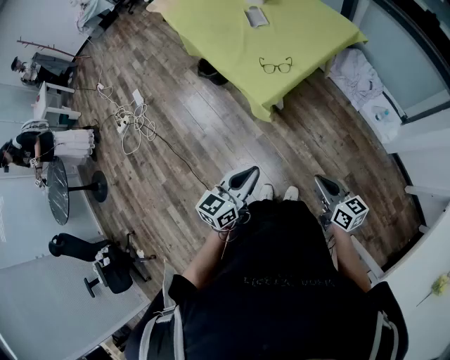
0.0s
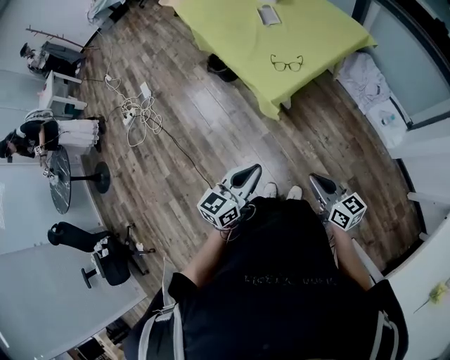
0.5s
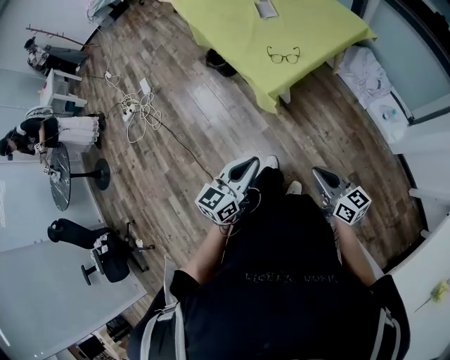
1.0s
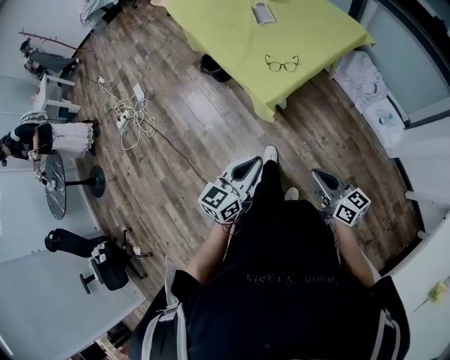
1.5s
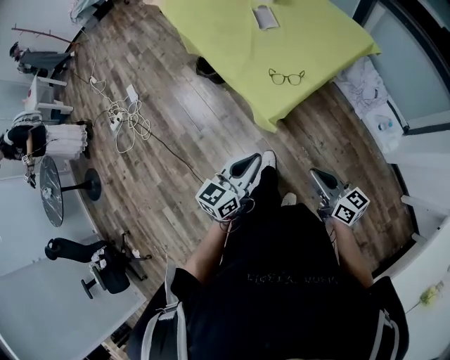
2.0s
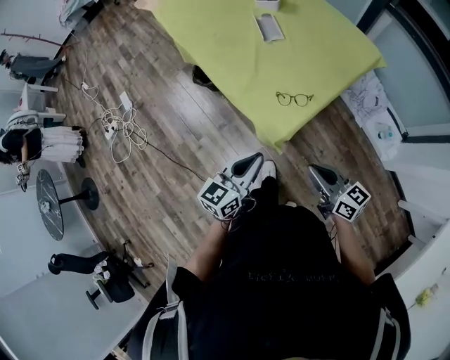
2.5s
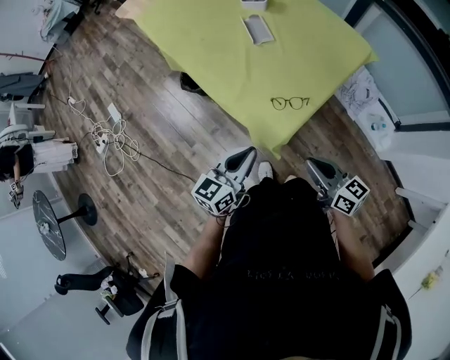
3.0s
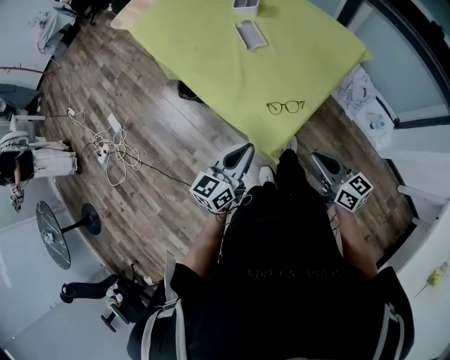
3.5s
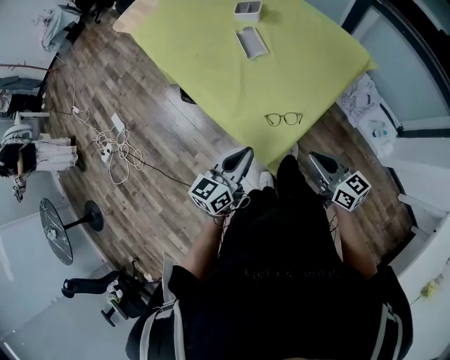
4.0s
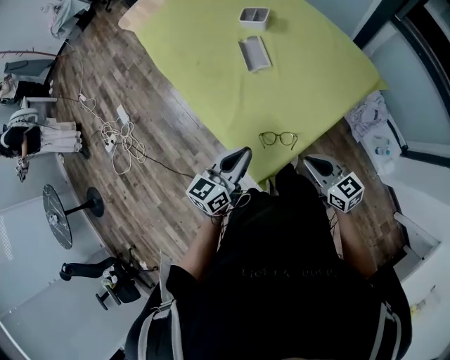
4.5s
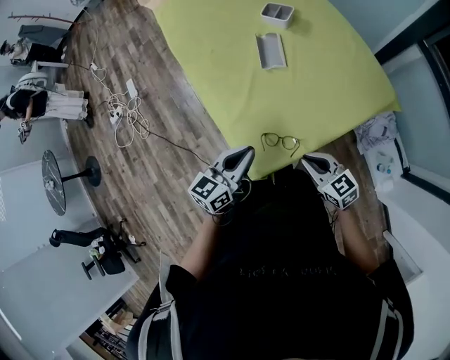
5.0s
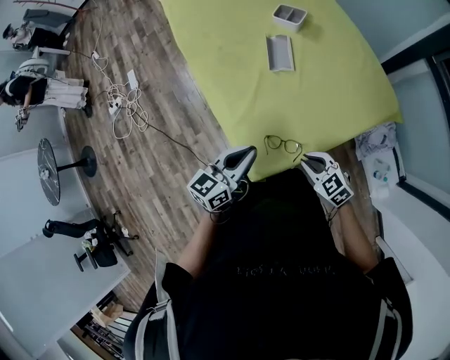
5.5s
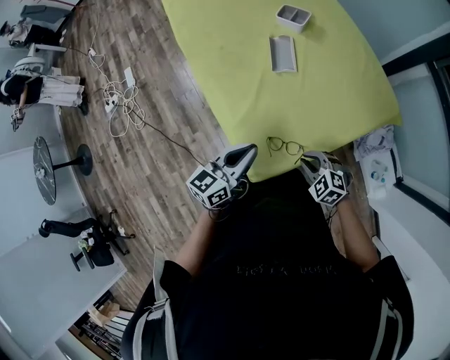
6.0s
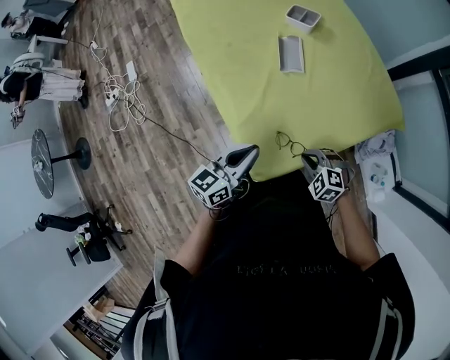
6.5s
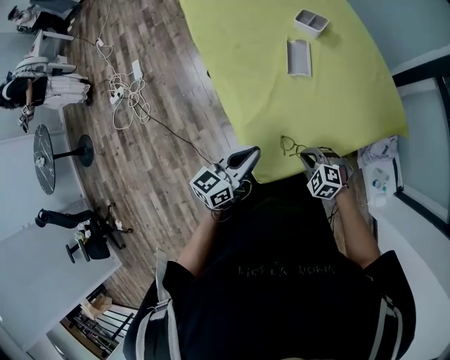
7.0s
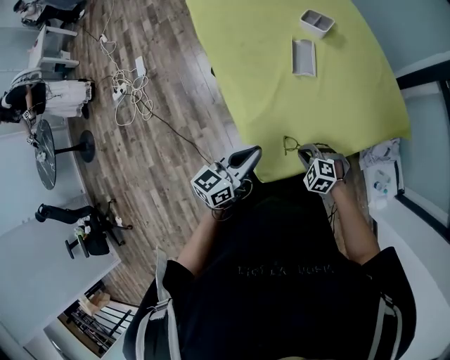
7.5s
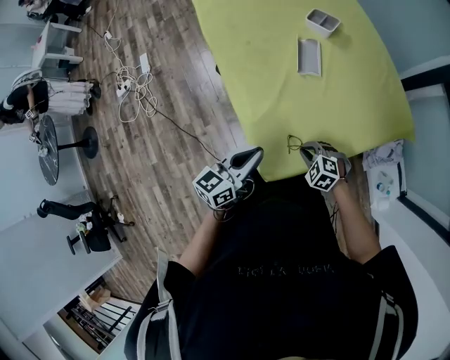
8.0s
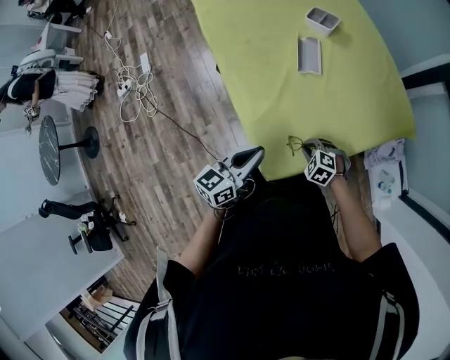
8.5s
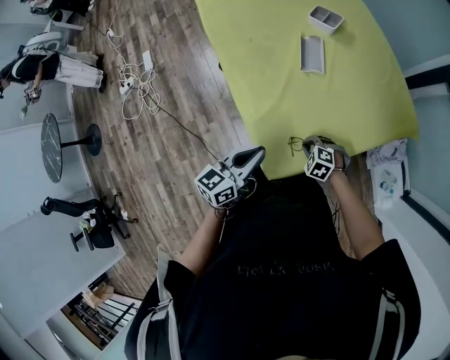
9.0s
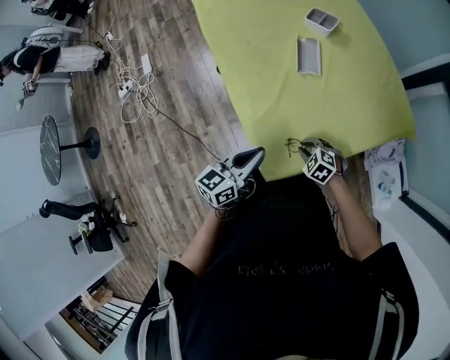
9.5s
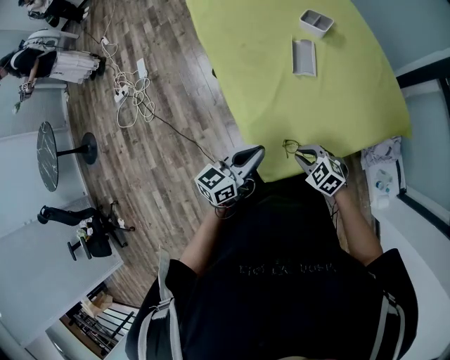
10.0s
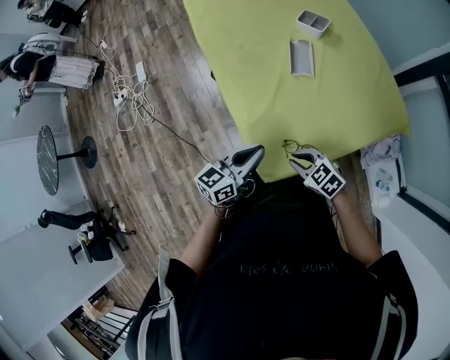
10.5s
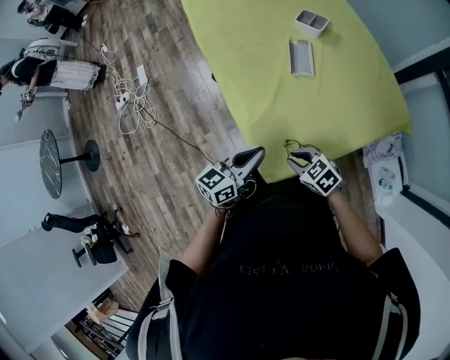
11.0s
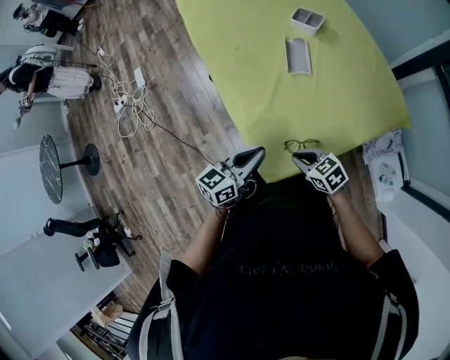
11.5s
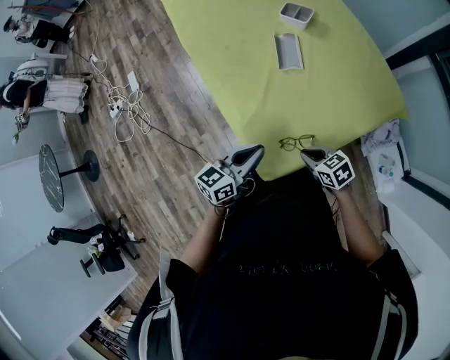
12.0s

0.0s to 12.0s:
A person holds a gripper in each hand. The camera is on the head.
0.0s to 2.0s: The two grippers go roughly 10 cm forward.
2.0s to 4.0s: The grippers both shift forward by about 20 cm.
4.0s to 6.0s: The right gripper heads downward and forward, covering about 15 cm, and angles its fingers downward, by some 40 degrees. The left gripper travels forward by about 10 cm.
6.0s to 8.0s: The grippers both shift to the left by roughly 5 cm.
8.0s to 10.0s: The right gripper goes some 5 cm upward.
10.0s to 12.0s: The right gripper turns by about 40 degrees.

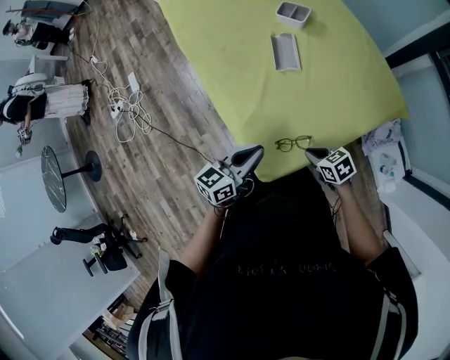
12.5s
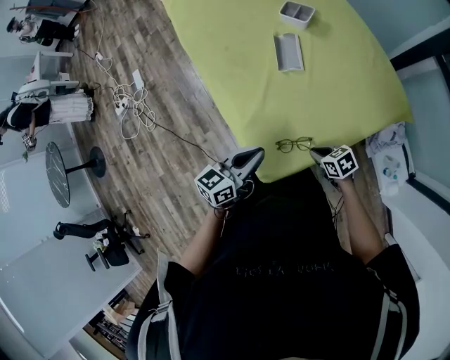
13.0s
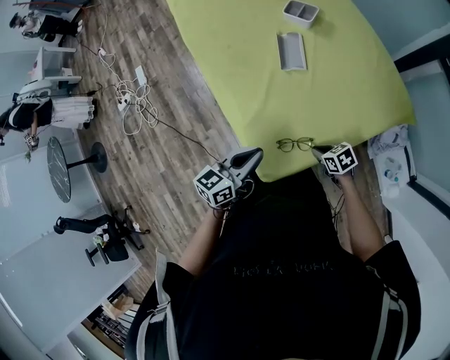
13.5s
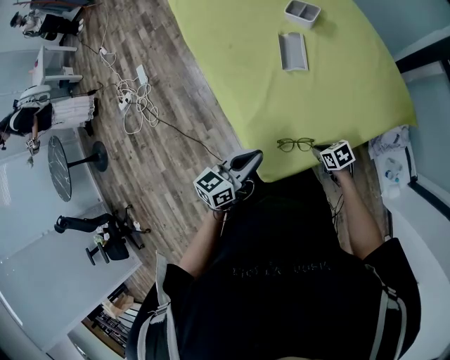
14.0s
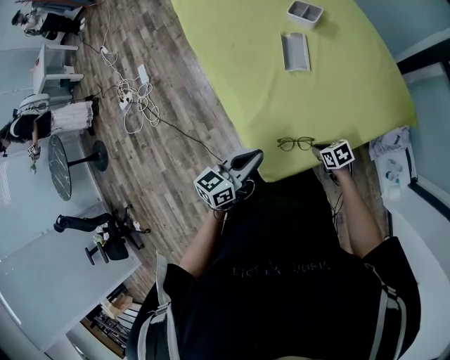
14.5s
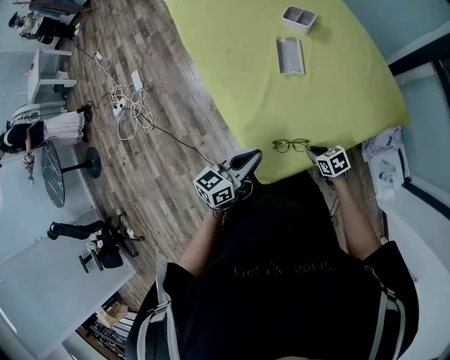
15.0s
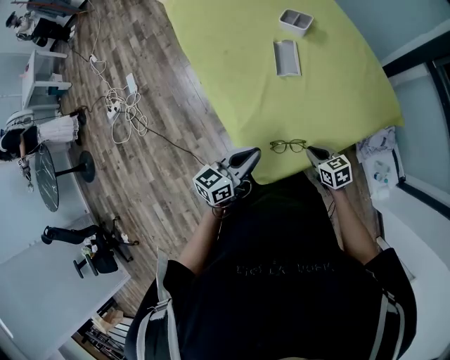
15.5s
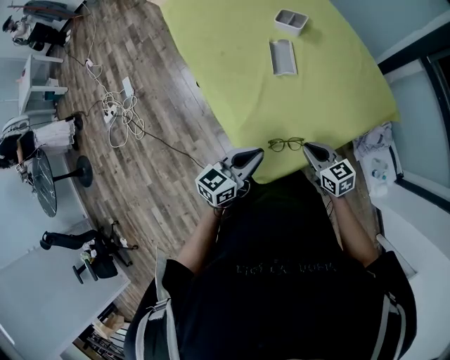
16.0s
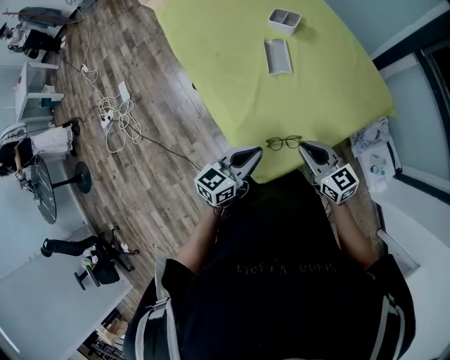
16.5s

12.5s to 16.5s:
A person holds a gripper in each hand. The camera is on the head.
12.5s to 14.5s: The right gripper shifts approximately 10 cm downward.
14.5s to 16.5s: The right gripper heads upward, covering roughly 25 cm, and points its fingers approximately 30 degrees further upward.

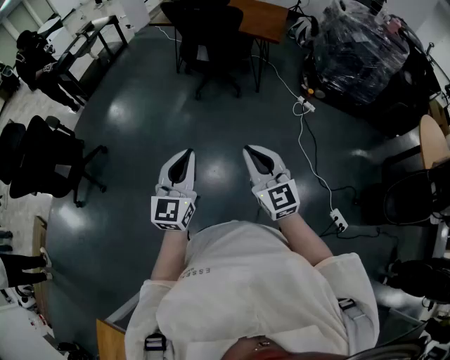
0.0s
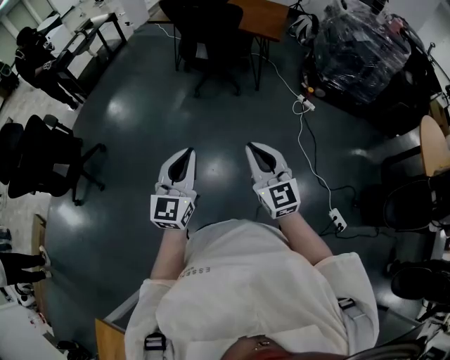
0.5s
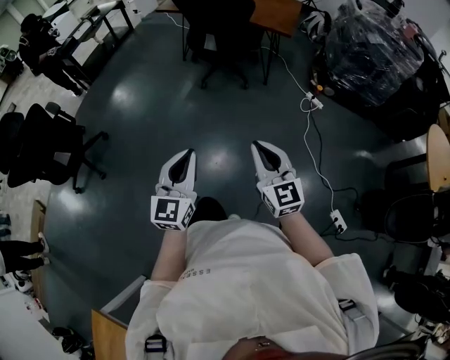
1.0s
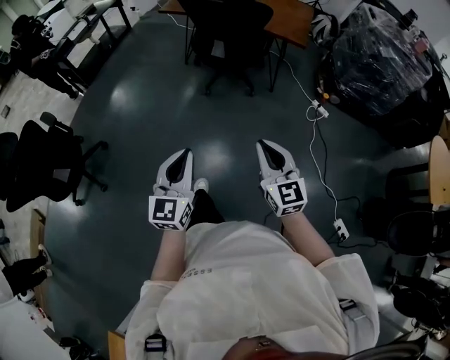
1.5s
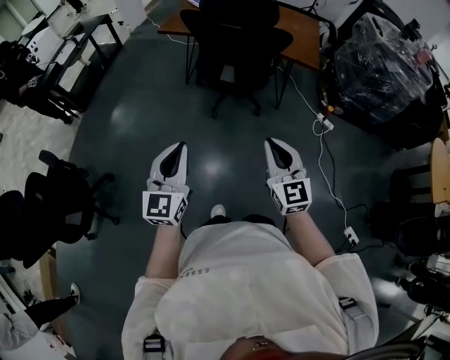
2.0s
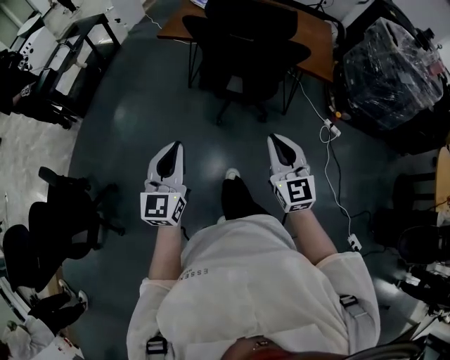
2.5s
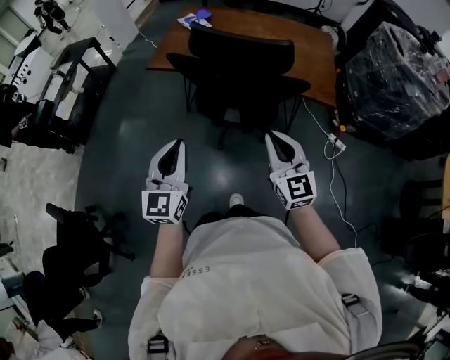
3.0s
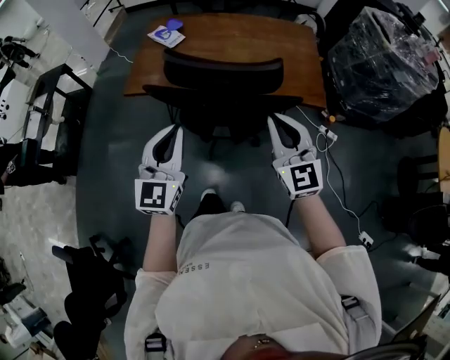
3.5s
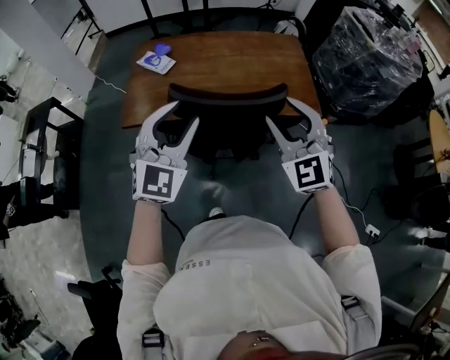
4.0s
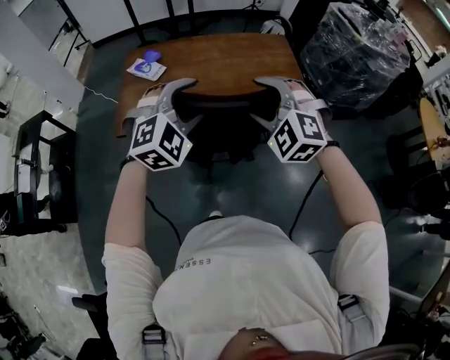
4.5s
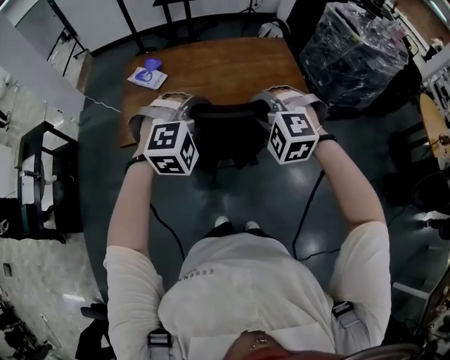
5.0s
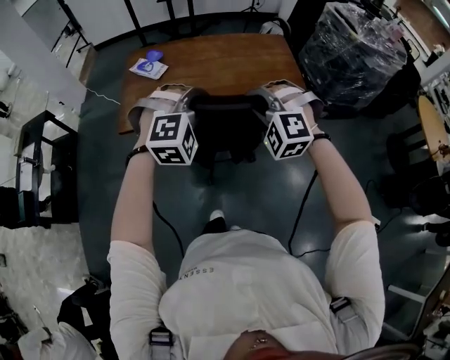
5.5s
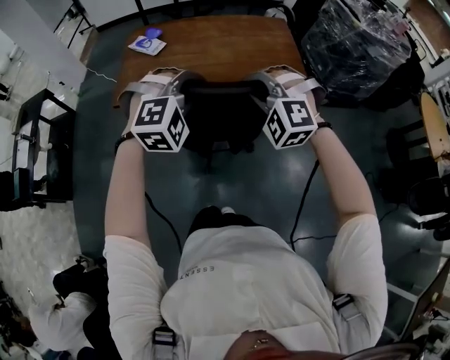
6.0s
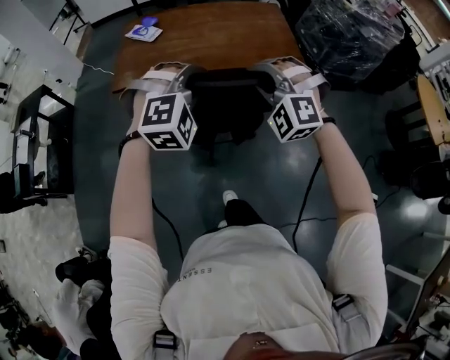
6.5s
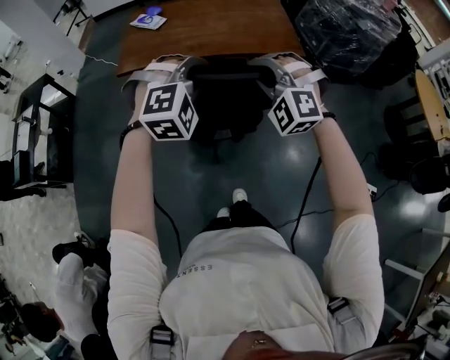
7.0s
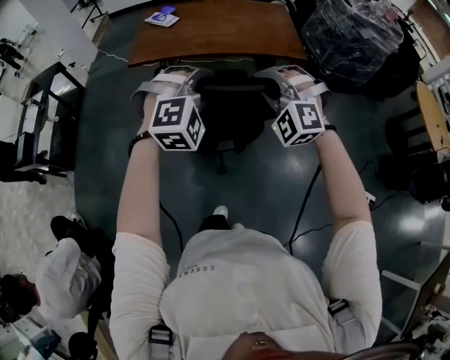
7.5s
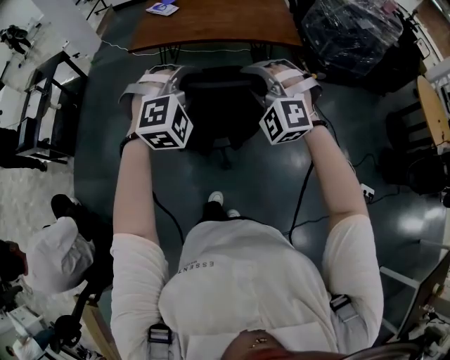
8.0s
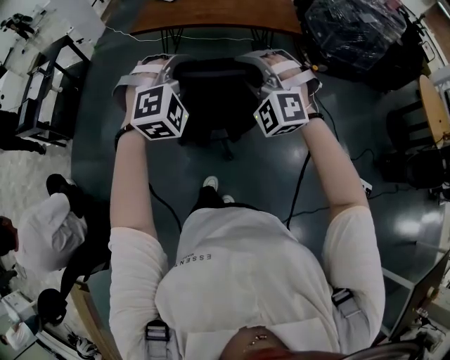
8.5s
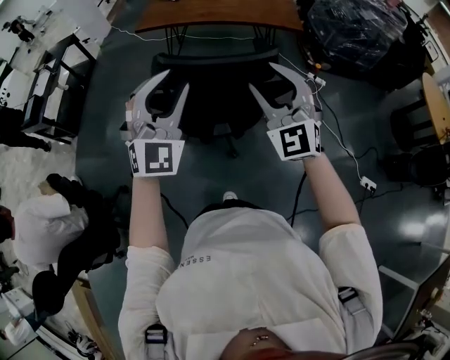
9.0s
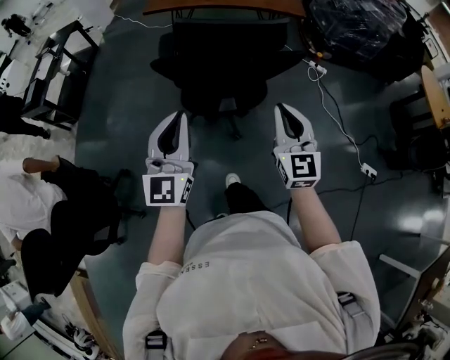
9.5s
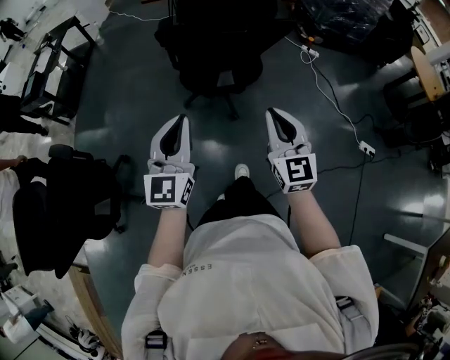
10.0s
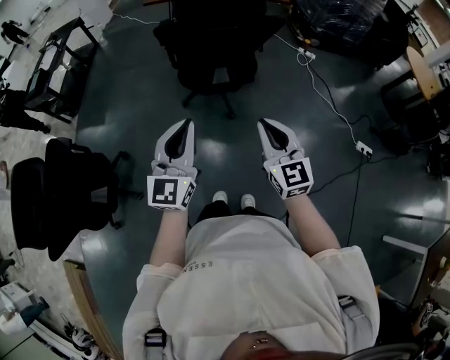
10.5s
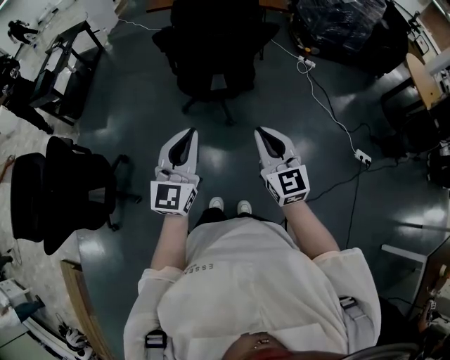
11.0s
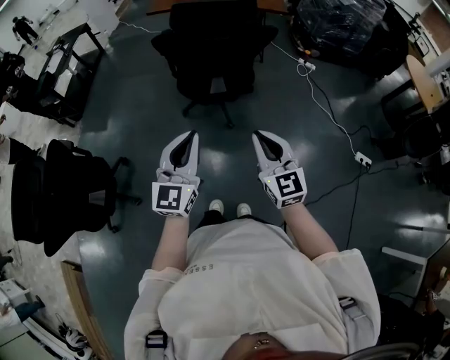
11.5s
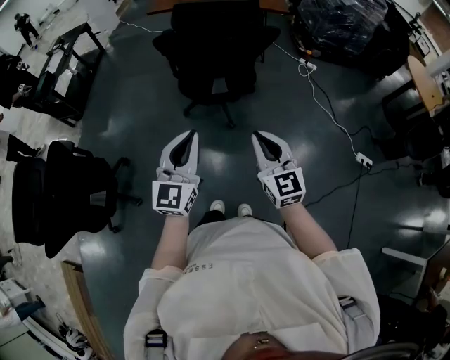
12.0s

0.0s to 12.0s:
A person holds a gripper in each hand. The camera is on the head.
0.0s to 2.0s: The left gripper shifts about 40 cm forward and to the left. The right gripper travels forward by approximately 35 cm.
2.0s to 4.0s: The two grippers travel together, forward, about 50 cm. The left gripper turns by some 50 degrees, and opens up. The right gripper swivels roughly 30 degrees, and opens.
4.0s to 6.0s: The right gripper goes roughly 5 cm downward, turns by roughly 40 degrees, and closes its fingers. The left gripper heads to the right and downward, covering approximately 10 cm, travels forward and back again, about 5 cm each way, tips its fingers downward by roughly 30 degrees, and opens, then closes once more.
6.0s to 8.0s: Both grippers travel together backward, approximately 30 cm.
8.0s to 10.0s: The two grippers travel together, backward, some 40 cm. The left gripper rotates around the line of its fingers by about 70 degrees, counterclockwise from behind; the right gripper rolls clockwise, seen from behind, by some 70 degrees, and opens, then closes again.
10.0s to 12.0s: The left gripper shifts roughly 10 cm backward and to the right. The right gripper travels backward by approximately 10 cm.
